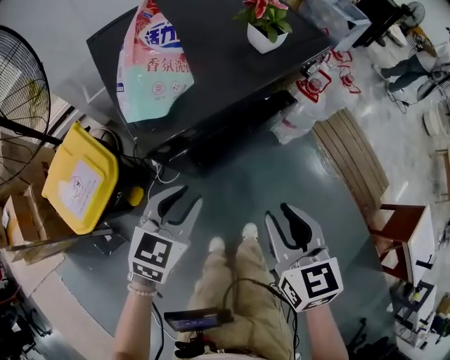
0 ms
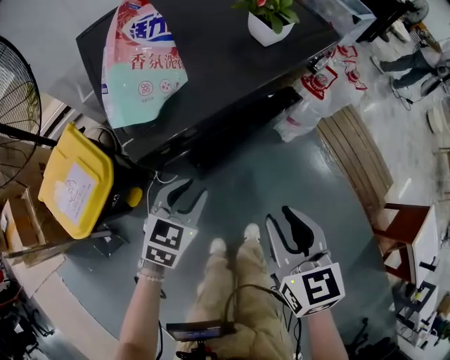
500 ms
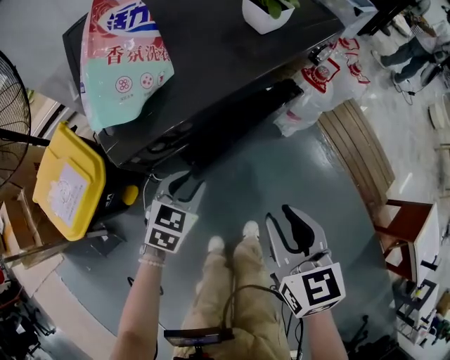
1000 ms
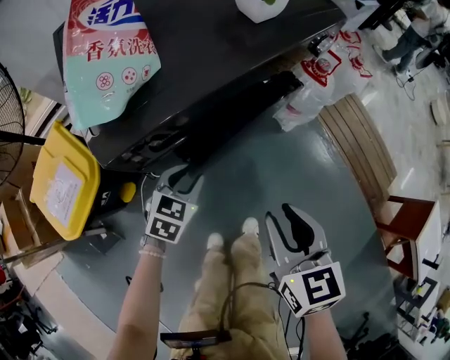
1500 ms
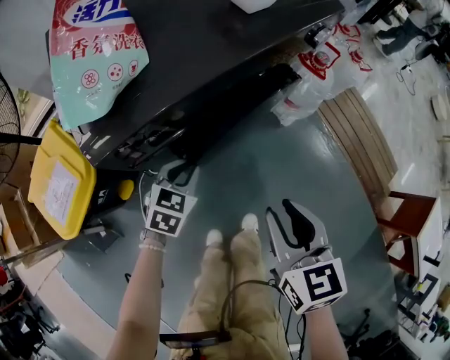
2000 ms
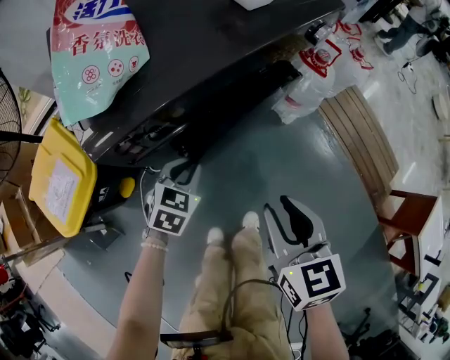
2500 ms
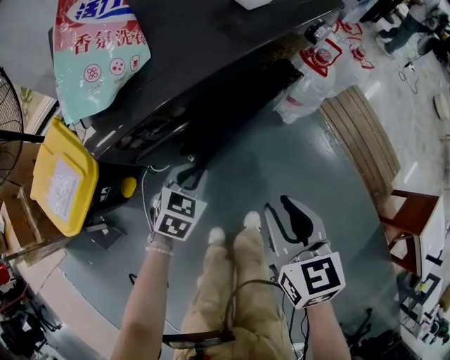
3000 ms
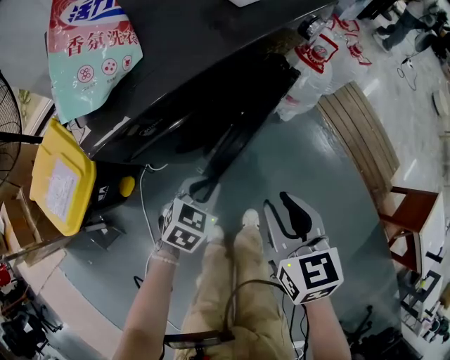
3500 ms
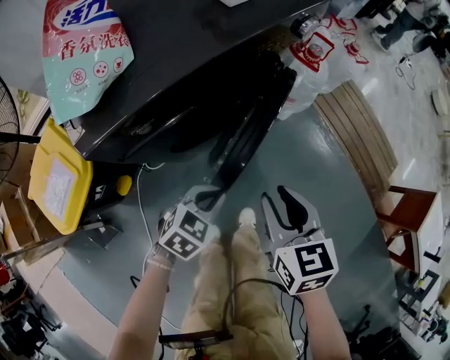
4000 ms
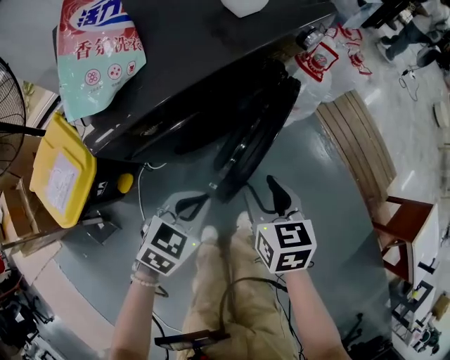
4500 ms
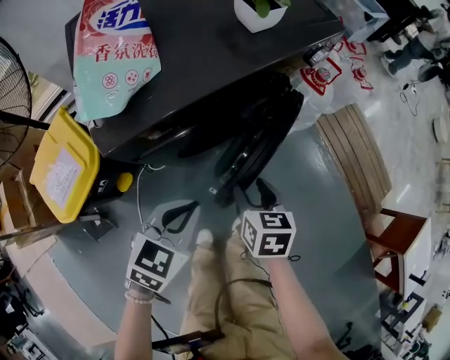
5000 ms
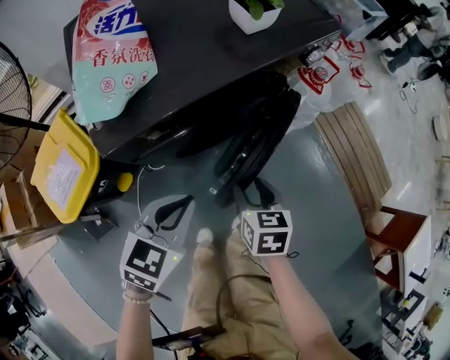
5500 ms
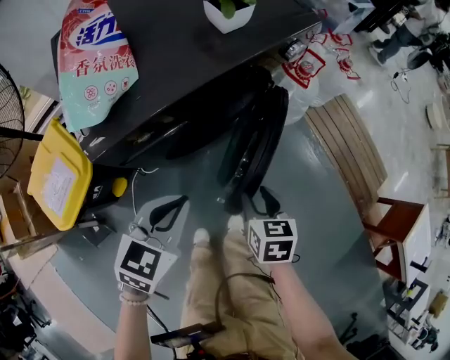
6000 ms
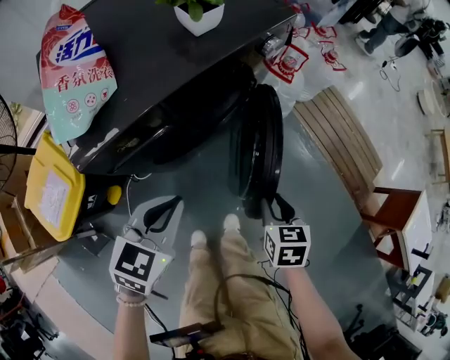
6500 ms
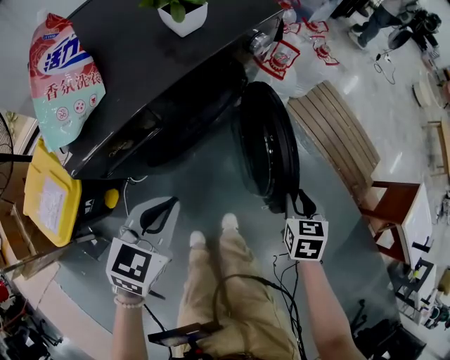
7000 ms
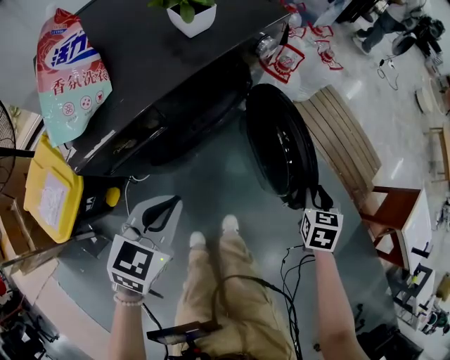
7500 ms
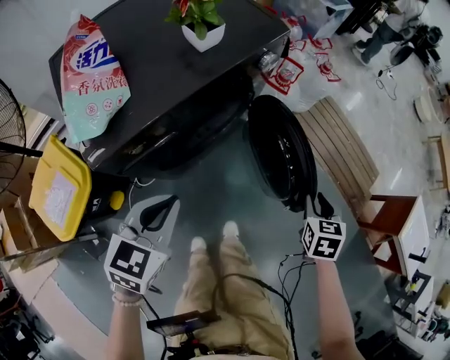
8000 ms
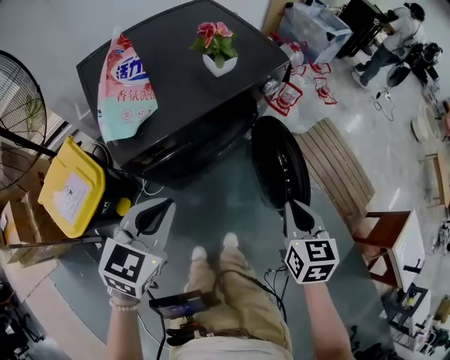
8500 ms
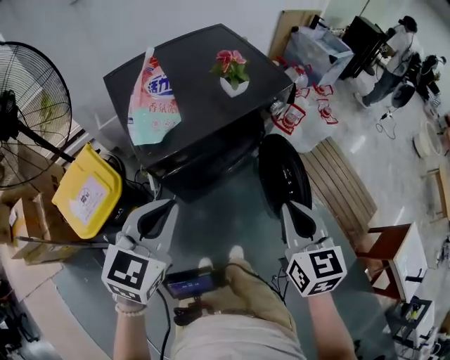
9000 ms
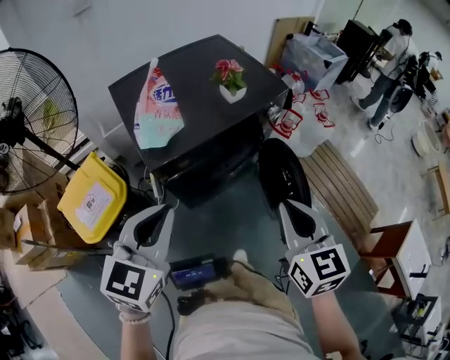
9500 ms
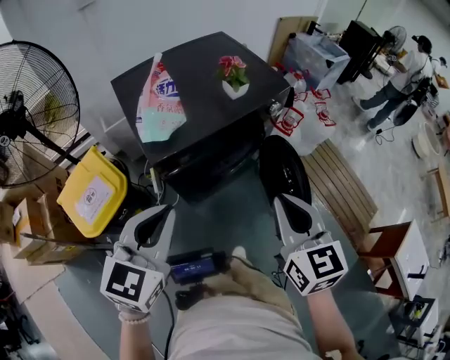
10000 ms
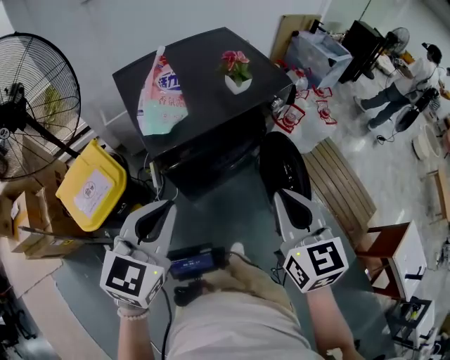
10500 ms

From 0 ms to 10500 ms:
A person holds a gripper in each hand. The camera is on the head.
From 0 ms to 2000 ms: The right gripper shifts approximately 10 cm downward. The left gripper travels downward and forward by approximately 20 cm.
From 2000 ms to 4000 ms: The left gripper is displaced to the right and backward by about 15 cm, and changes its angle by some 20 degrees.
From 4000 ms to 6500 ms: The right gripper goes about 10 cm to the right and downward. Meanwhile the left gripper travels upward by some 15 cm.
From 6500 ms to 8500 ms: Both grippers move upward, some 15 cm. The right gripper closes up.
From 8500 ms to 10500 ms: The right gripper shifts roughly 20 cm upward and to the left, and swivels about 30 degrees. The left gripper is displaced upward and backward by some 15 cm.

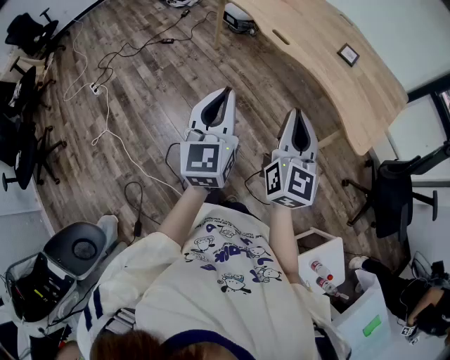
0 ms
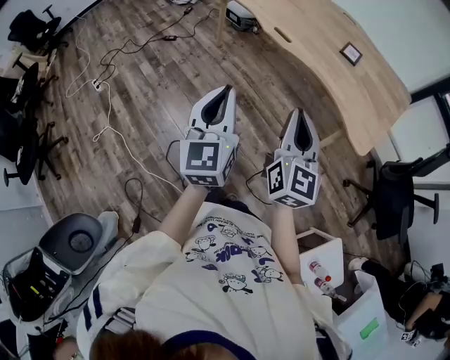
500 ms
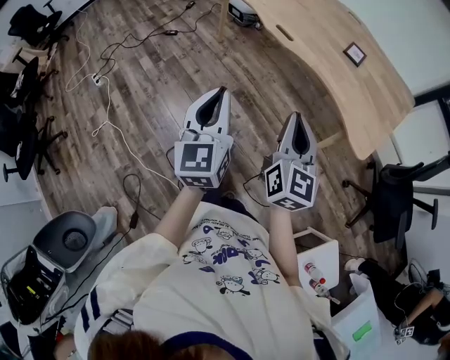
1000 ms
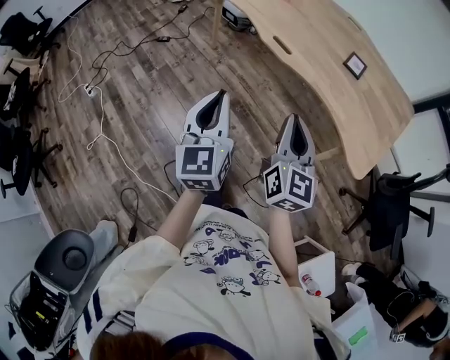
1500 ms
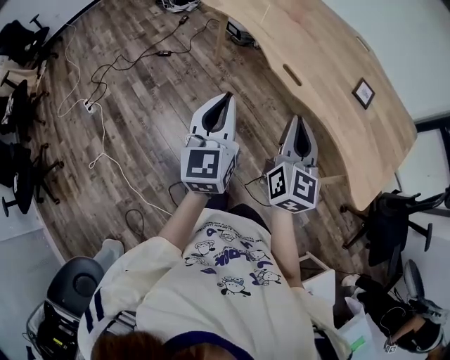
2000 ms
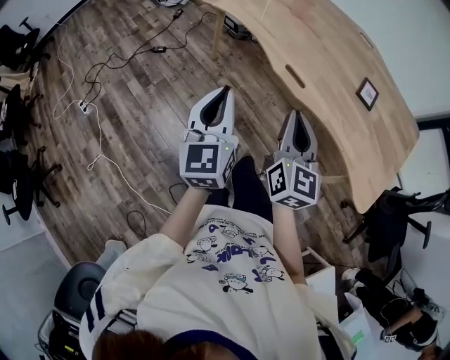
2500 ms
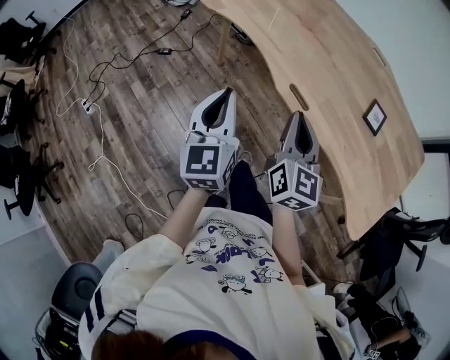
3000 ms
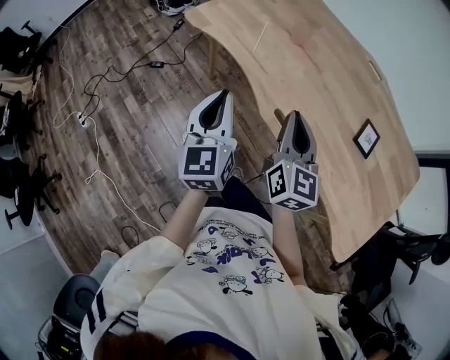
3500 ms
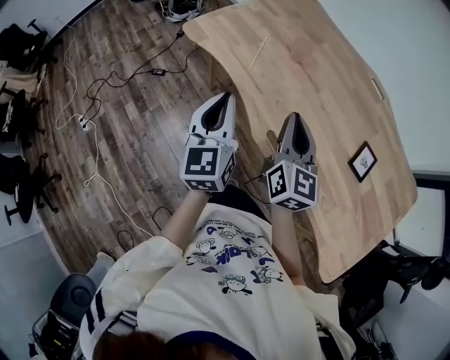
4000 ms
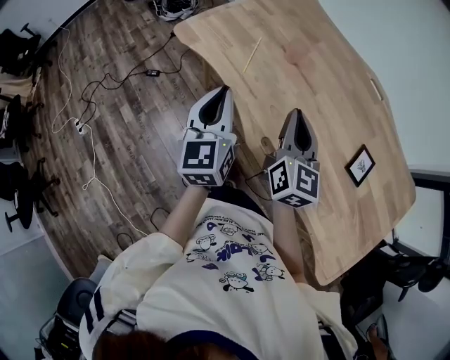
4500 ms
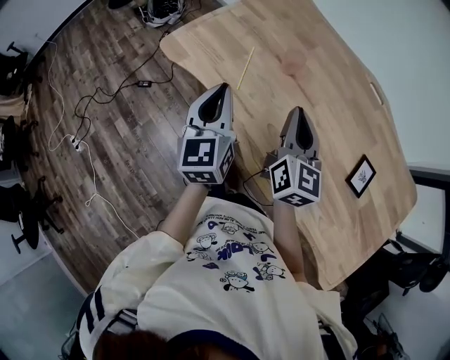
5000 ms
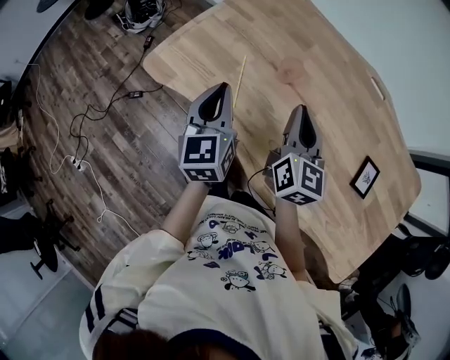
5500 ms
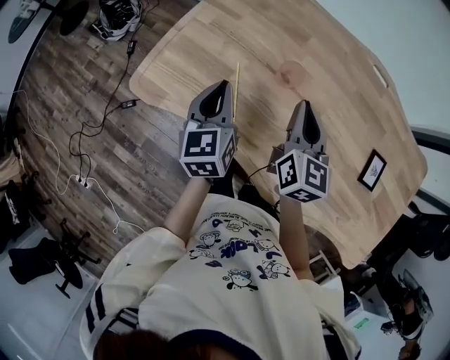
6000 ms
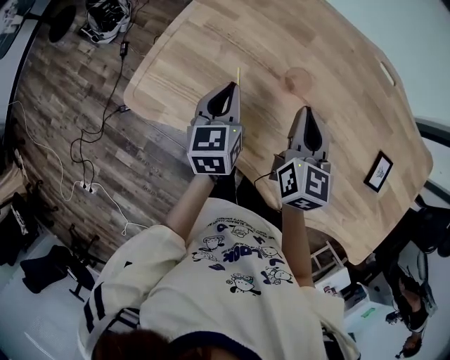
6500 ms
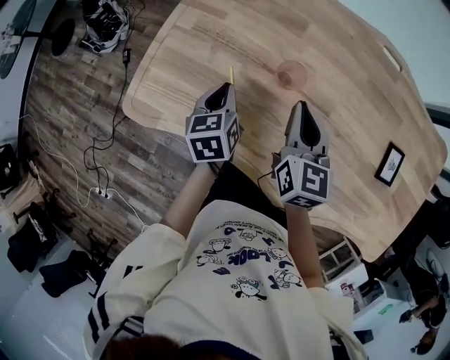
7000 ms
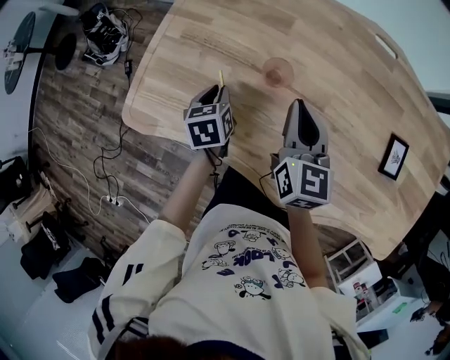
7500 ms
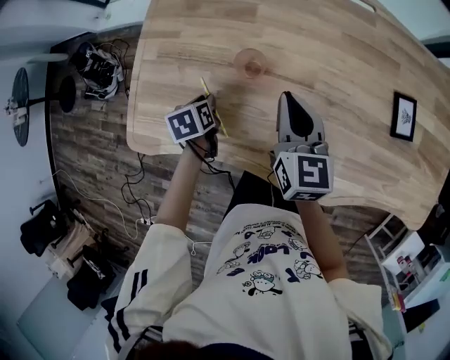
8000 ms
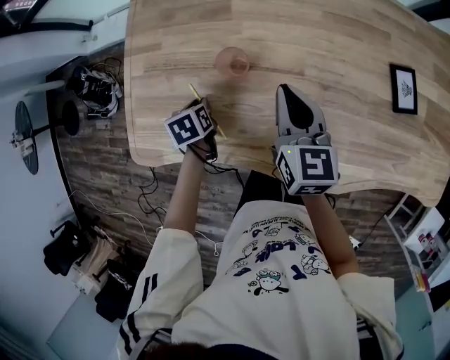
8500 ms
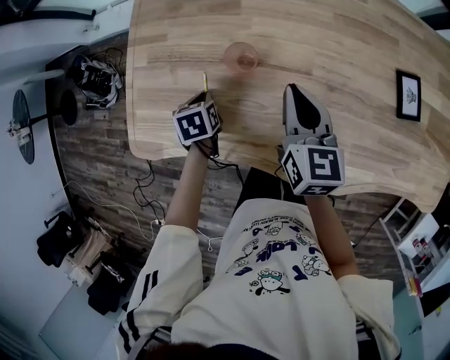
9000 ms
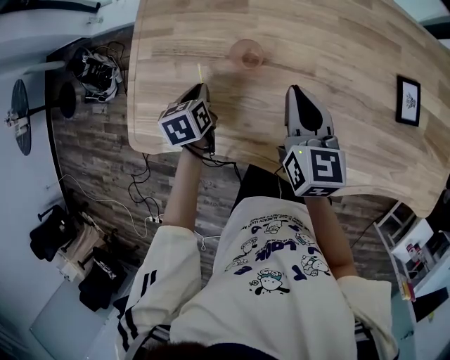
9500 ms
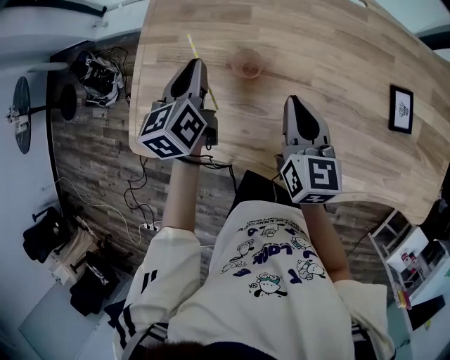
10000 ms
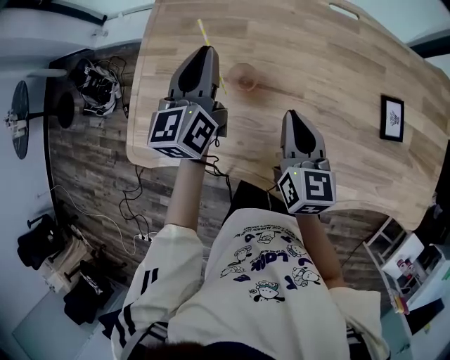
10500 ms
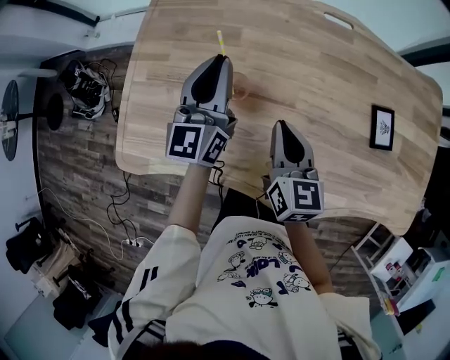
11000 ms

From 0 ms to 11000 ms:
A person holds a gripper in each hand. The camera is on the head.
From 0 ms to 2000 ms: Both grippers move forward, approximately 20 cm.
From 2000 ms to 3500 ms: The two grippers go roughly 25 cm forward.
From 3500 ms to 5500 ms: The two grippers go approximately 30 cm forward.
From 5500 ms to 7500 ms: The right gripper is displaced forward and downward by about 10 cm. Meanwhile the left gripper is displaced downward and forward by about 25 cm, and tilts its fingers roughly 40 degrees downward.
From 7500 ms to 9000 ms: The left gripper moves downward, some 5 cm, and changes its angle by roughly 20 degrees. The right gripper shifts by some 5 cm.
From 9000 ms to 11000 ms: The left gripper travels upward and to the right by about 30 cm, and angles its fingers upward, by some 70 degrees.

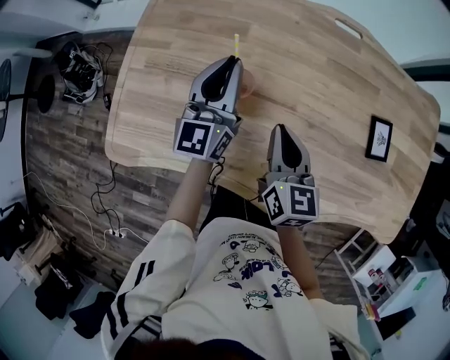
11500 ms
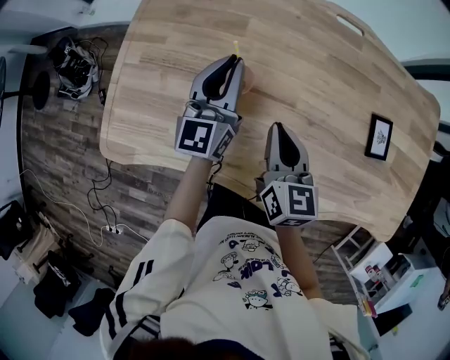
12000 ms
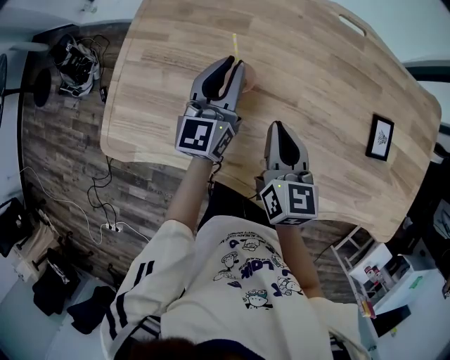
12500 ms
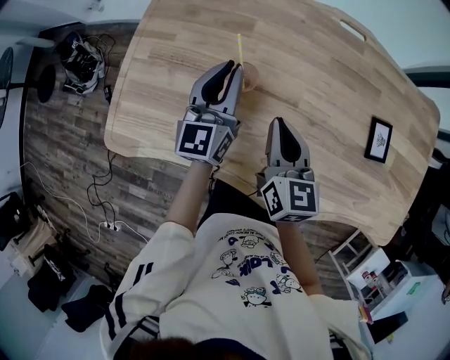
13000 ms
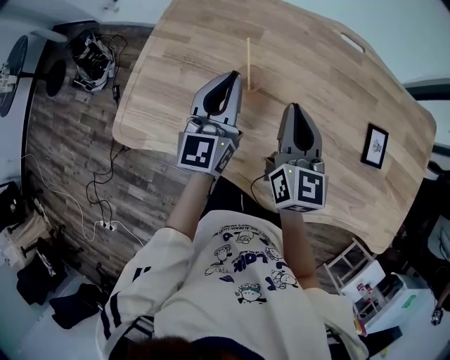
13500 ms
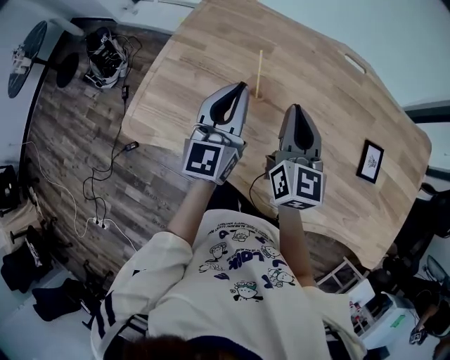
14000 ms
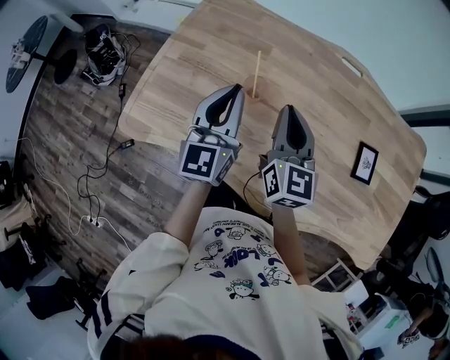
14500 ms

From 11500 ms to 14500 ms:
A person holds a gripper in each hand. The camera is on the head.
From 11500 ms to 13000 ms: There are only small adjustments of the grippers.
From 13000 ms to 14500 ms: The right gripper shifts some 10 cm upward. The left gripper moves upward and backward, approximately 10 cm.

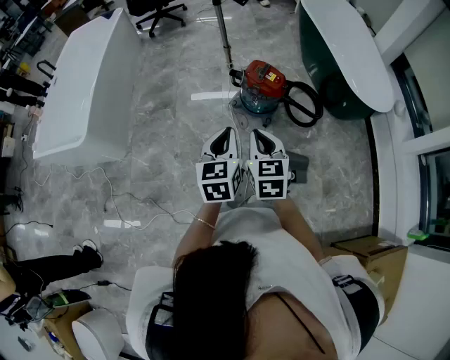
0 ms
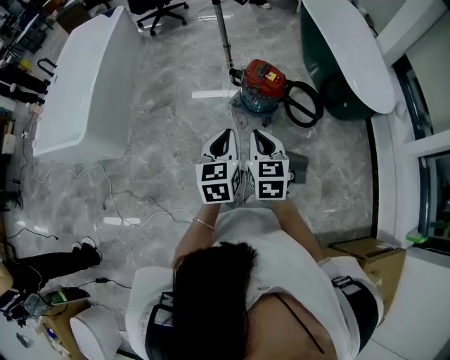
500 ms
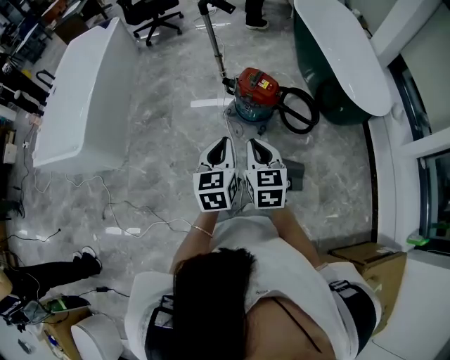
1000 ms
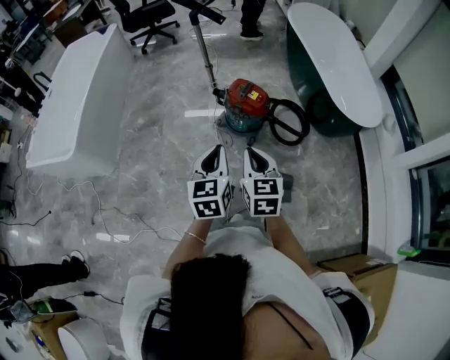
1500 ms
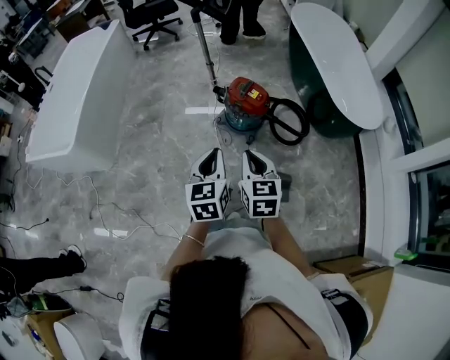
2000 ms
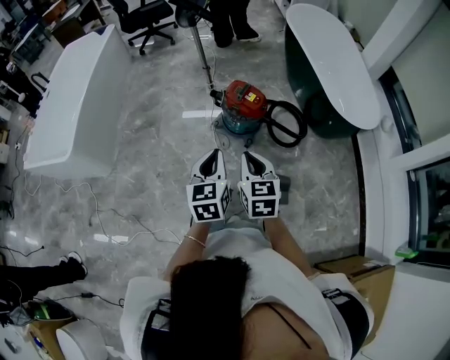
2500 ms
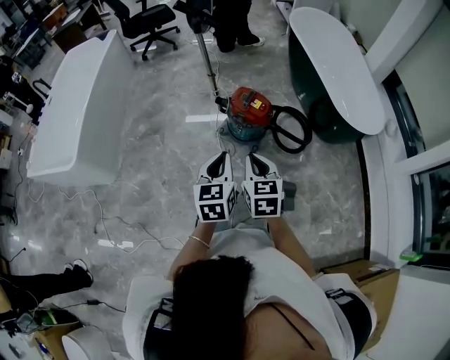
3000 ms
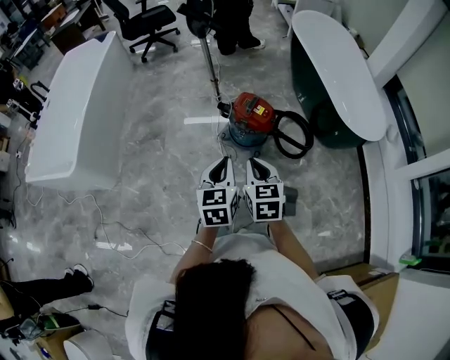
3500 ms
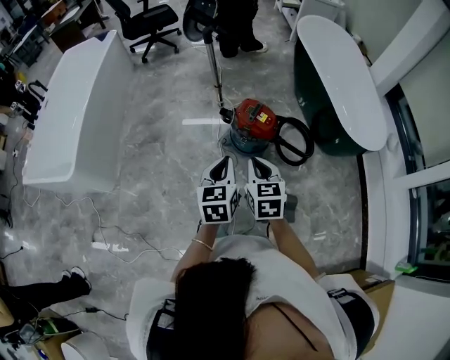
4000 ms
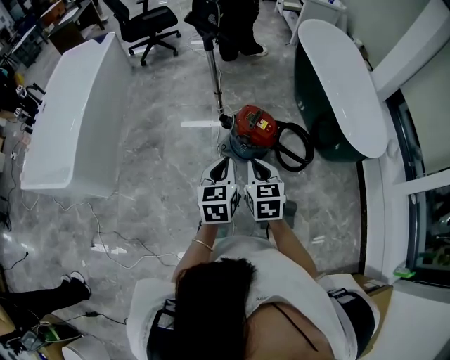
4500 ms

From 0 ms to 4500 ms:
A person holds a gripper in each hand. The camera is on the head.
From 0 ms to 2000 ms: The grippers both shift to the right by about 10 cm.
From 2000 ms to 4500 ms: The two grippers go roughly 15 cm forward.
